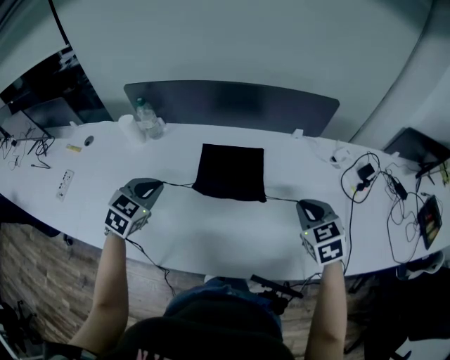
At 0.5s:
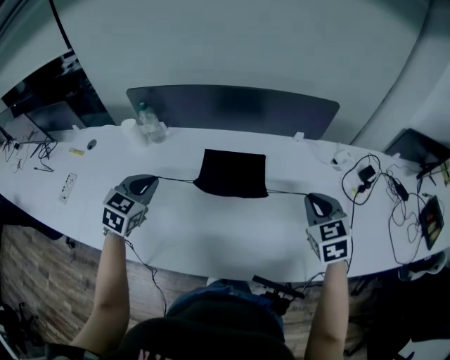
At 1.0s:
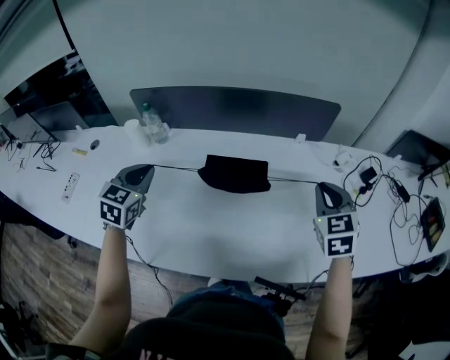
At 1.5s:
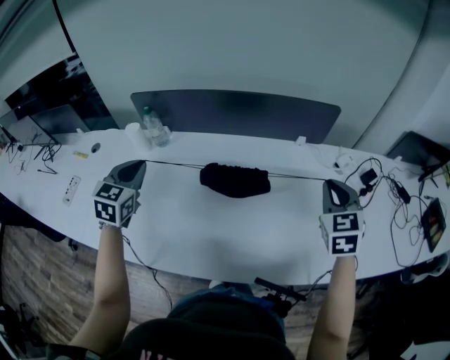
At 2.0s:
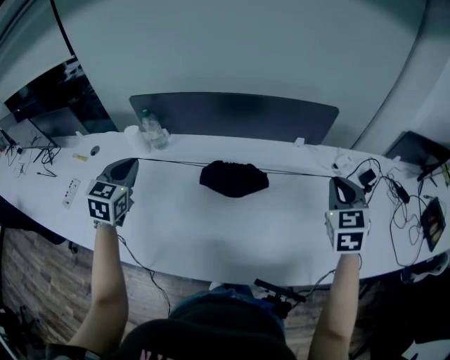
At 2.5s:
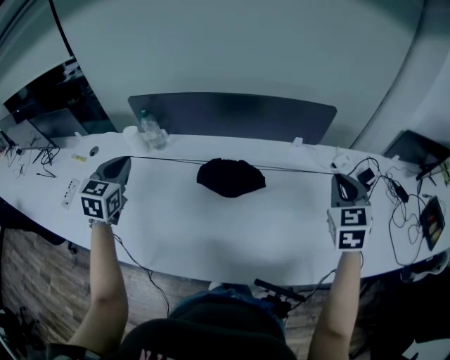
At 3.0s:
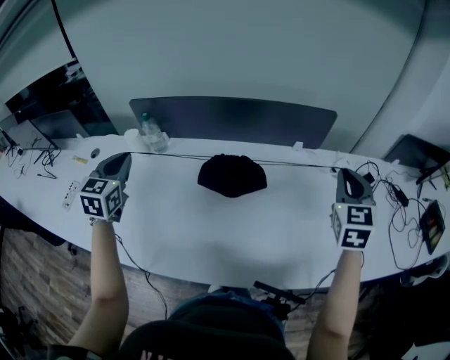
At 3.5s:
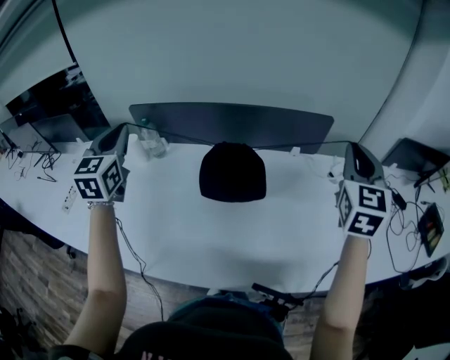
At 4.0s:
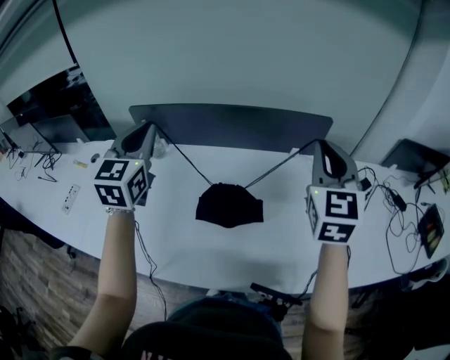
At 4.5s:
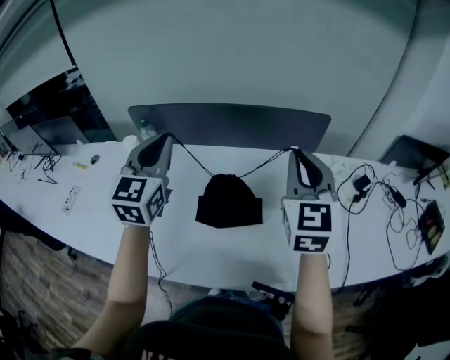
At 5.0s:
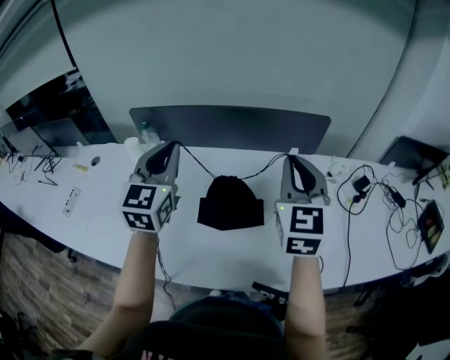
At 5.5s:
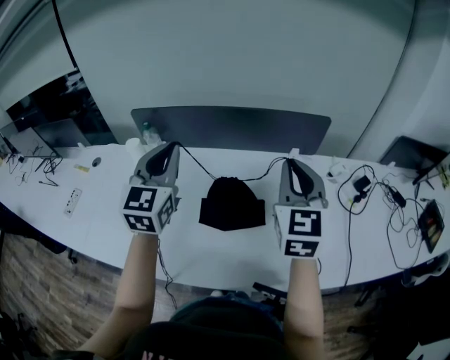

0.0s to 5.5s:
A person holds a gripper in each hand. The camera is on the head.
0.0s to 2.0s: The right gripper is displaced upward, to the right and forward by some 15 cm, and turns by roughly 20 degrees, while the left gripper heads upward and to the left, covering approximately 15 cm, and turns by approximately 20 degrees.
2.0s to 3.5s: Both grippers travel together upward, some 15 cm. The right gripper changes its angle by about 20 degrees.
3.5s to 5.5s: The right gripper shifts approximately 15 cm to the left; the left gripper is displaced to the right by some 15 cm.

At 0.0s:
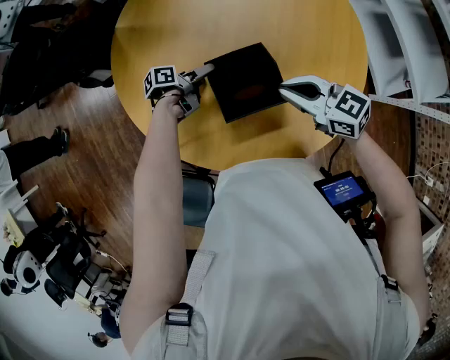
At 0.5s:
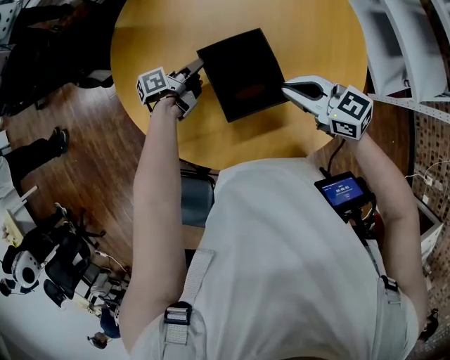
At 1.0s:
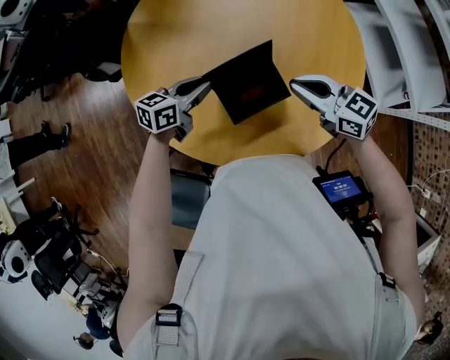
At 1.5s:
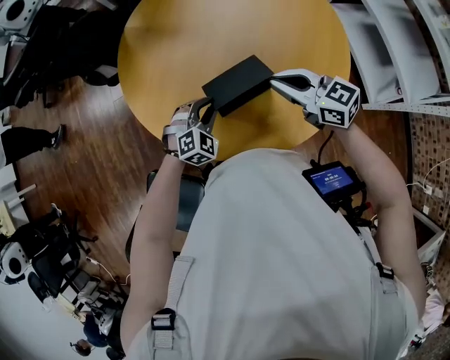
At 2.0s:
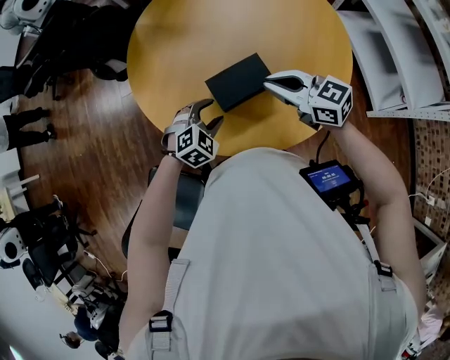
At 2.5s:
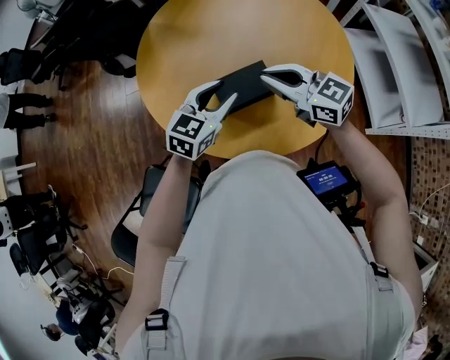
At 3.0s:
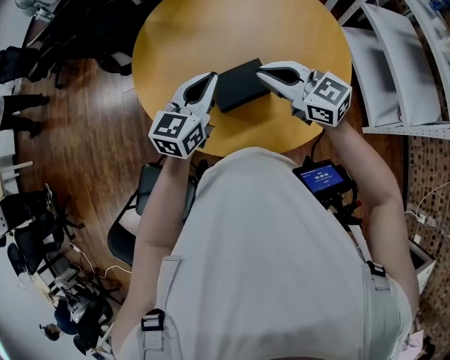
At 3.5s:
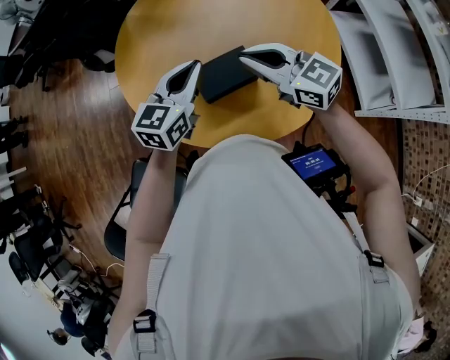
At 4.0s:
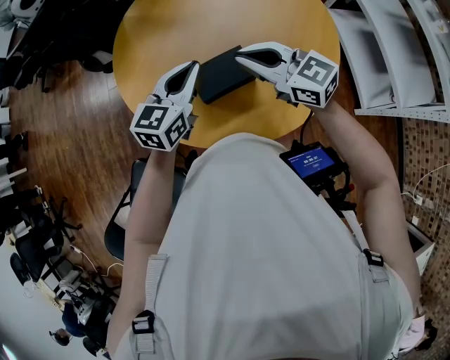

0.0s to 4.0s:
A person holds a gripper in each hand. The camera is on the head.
0.0s to 2.0s: The right gripper ends up approximately 15 cm from where it was. Meanwhile the left gripper changes place by some 30 cm, twists about 110 degrees clockwise, seen from behind, and closes and opens again.
2.0s to 4.0s: The right gripper is displaced upward by approximately 5 cm, while the left gripper travels upward by about 20 cm, tilts its fingers some 40 degrees upward, and closes its fingers.

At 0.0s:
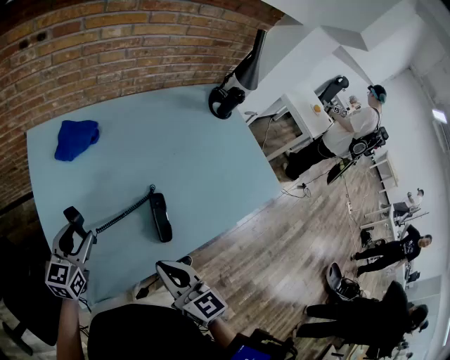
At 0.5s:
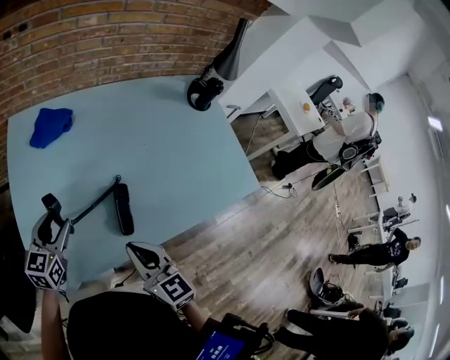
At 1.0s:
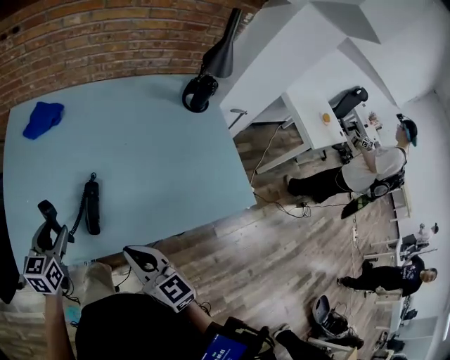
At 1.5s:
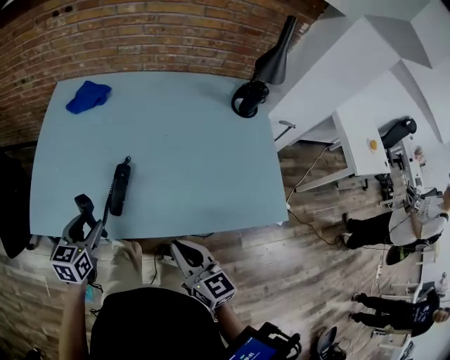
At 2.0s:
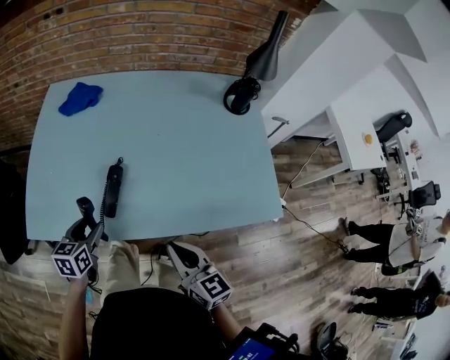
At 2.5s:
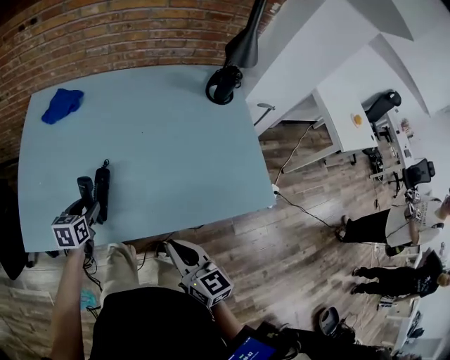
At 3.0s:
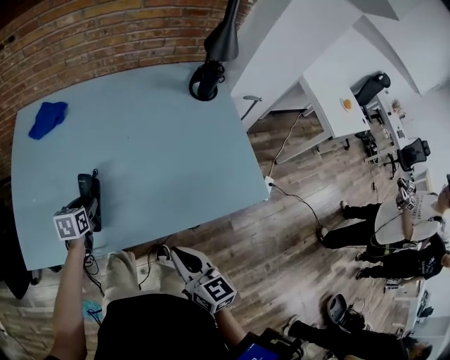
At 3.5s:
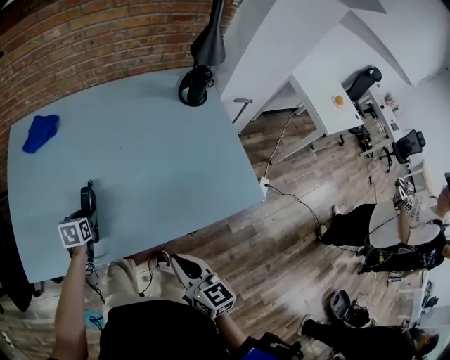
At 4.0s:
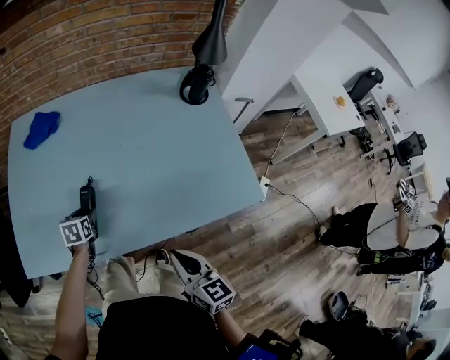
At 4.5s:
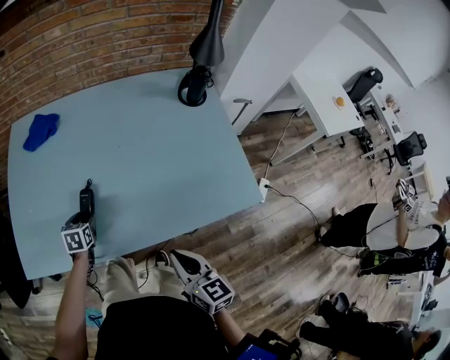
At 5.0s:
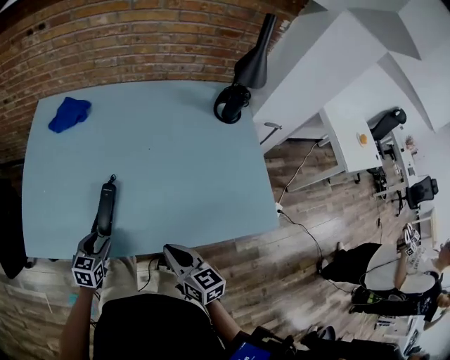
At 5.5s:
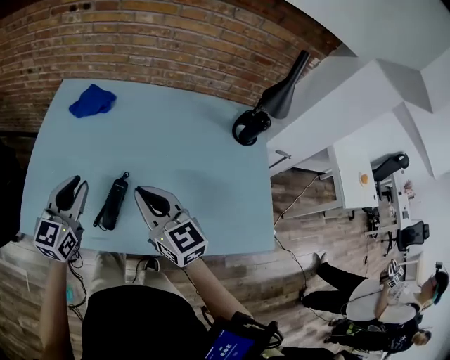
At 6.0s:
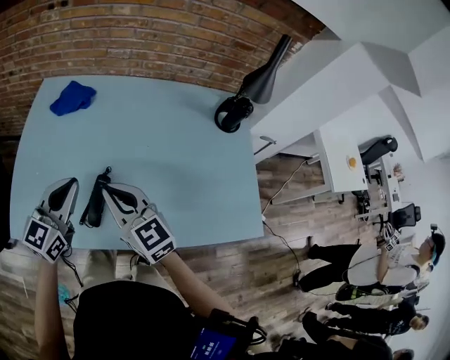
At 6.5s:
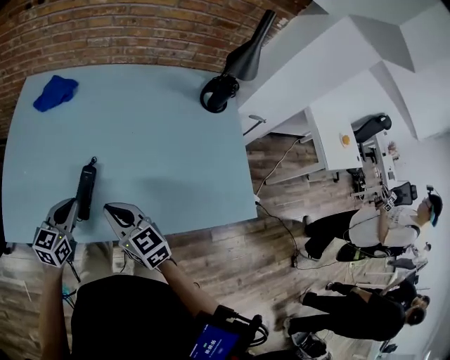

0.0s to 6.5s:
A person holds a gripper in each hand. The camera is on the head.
0.0s to 2.0s: The right gripper travels to the right by some 30 cm. The left gripper goes about 25 cm to the right and backward, and swivels roughly 30 degrees.
2.0s to 4.5s: The right gripper goes roughly 10 cm to the right; the left gripper shifts about 15 cm downward and forward.
4.5s to 6.5s: The left gripper heads upward, covering some 15 cm, changes its angle by roughly 30 degrees, and closes its fingers, while the right gripper travels to the left and forward by approximately 20 cm, and turns by roughly 30 degrees.

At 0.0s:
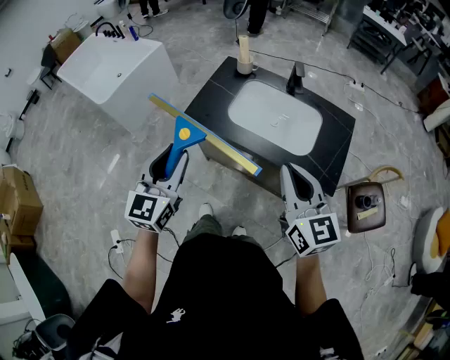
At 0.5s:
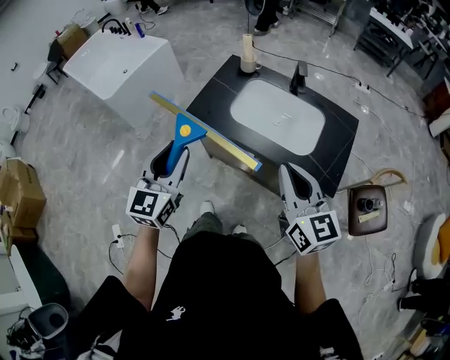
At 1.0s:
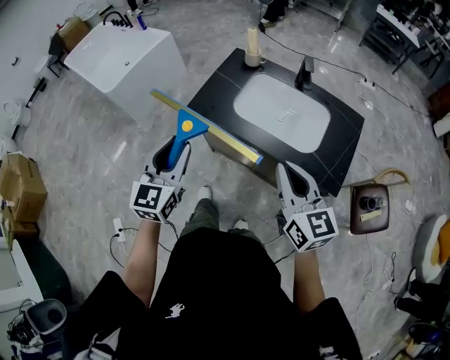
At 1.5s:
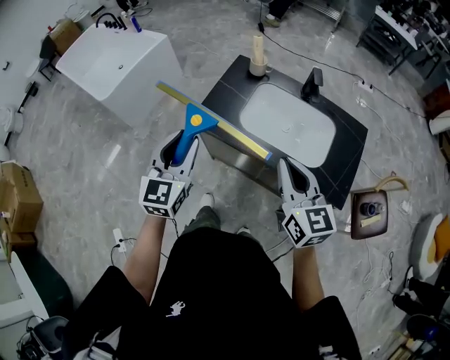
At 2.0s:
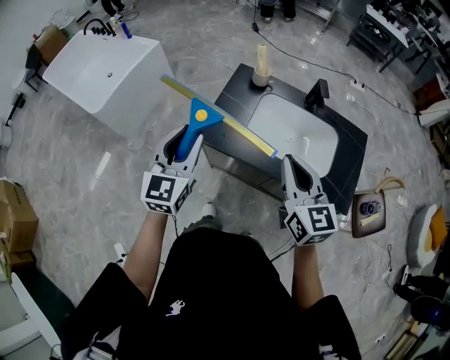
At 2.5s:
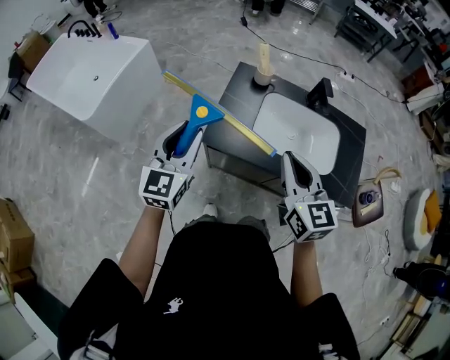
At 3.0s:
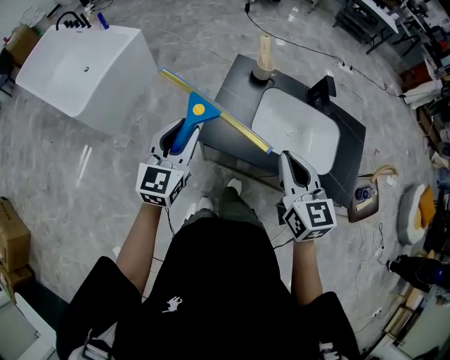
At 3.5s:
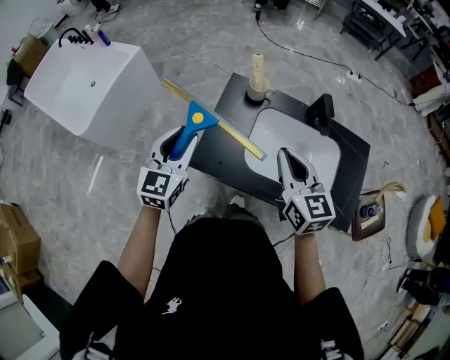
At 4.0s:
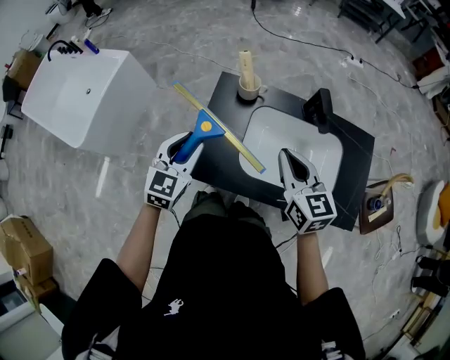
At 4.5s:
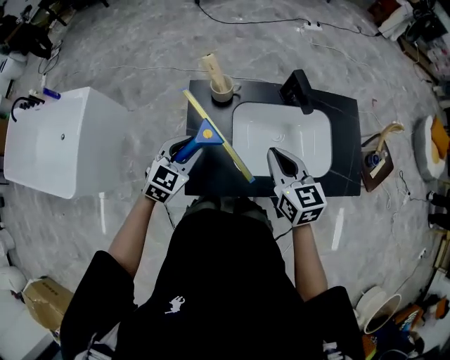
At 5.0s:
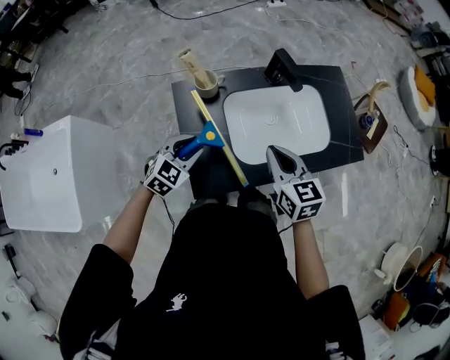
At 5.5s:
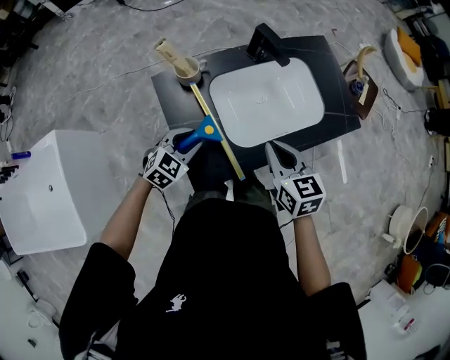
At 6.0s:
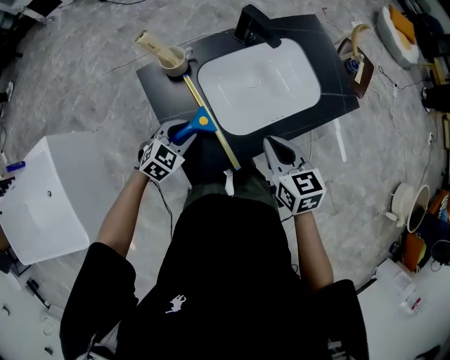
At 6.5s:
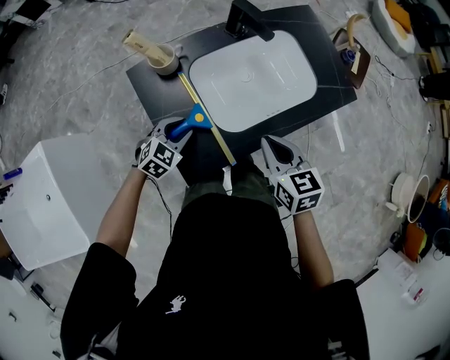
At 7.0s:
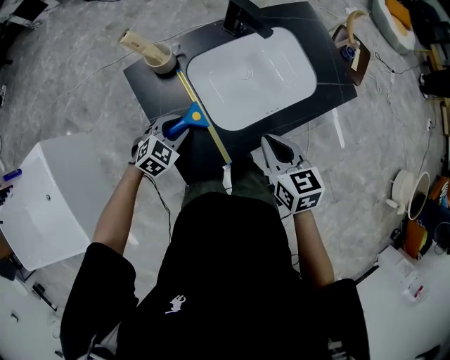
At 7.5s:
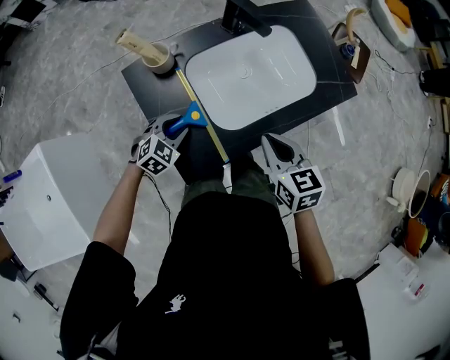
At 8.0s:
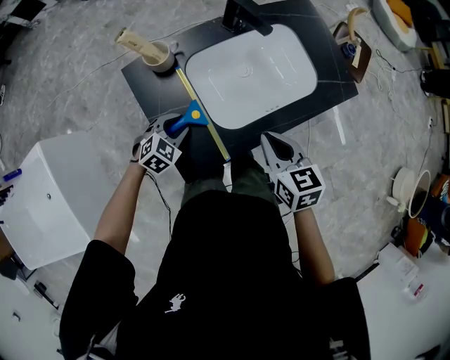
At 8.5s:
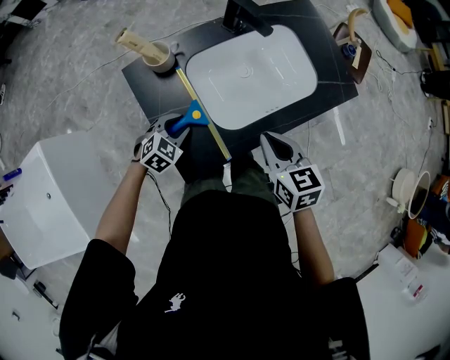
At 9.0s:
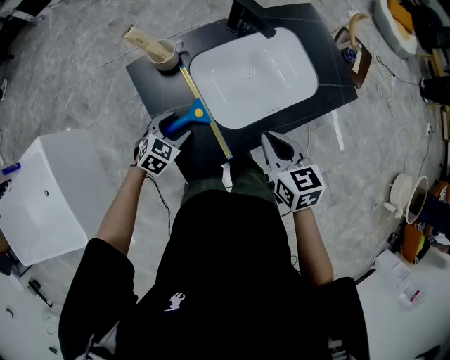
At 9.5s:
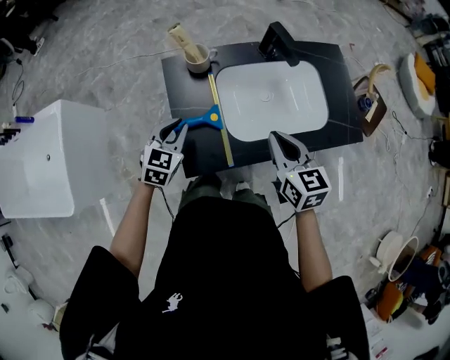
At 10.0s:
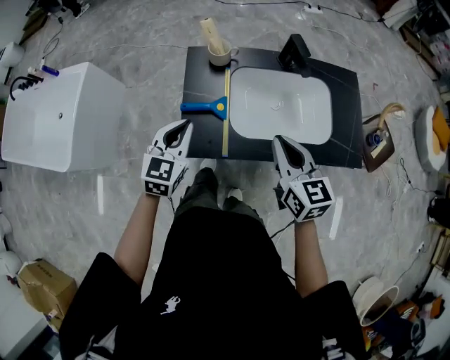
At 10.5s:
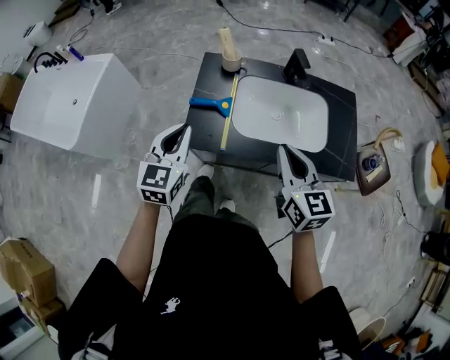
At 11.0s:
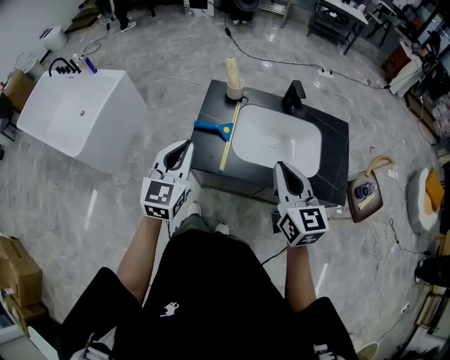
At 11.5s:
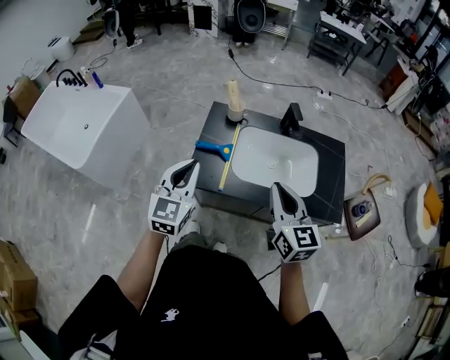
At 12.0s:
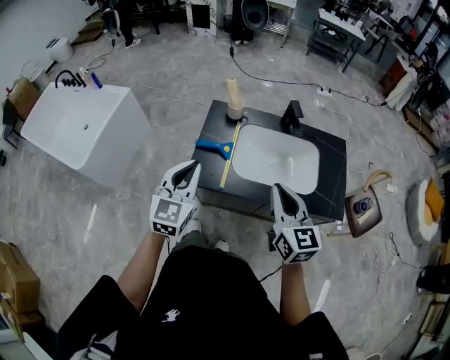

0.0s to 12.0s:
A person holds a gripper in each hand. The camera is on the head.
0.0s to 2.0s: The left gripper heads forward, covering some 20 cm. Meanwhile the right gripper moves forward and to the left, some 20 cm.
2.0s to 4.0s: The grippers both shift forward and downward by roughly 20 cm. The left gripper rotates approximately 20 degrees.
4.0s to 6.0s: The left gripper travels downward by some 20 cm, and rotates some 60 degrees. Meanwhile the right gripper is displaced downward by approximately 10 cm, and changes its angle by roughly 40 degrees.
6.0s to 8.0s: The left gripper moves some 5 cm.
8.0s to 10.0s: The left gripper moves upward, roughly 20 cm, swivels some 60 degrees, and closes. Meanwhile the right gripper heads upward, covering roughly 10 cm, and turns by approximately 30 degrees.
10.0s to 12.0s: The two grippers go about 15 cm backward and upward.
